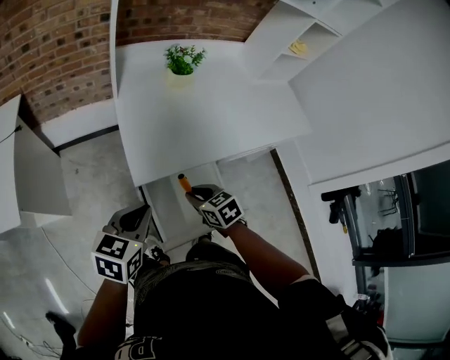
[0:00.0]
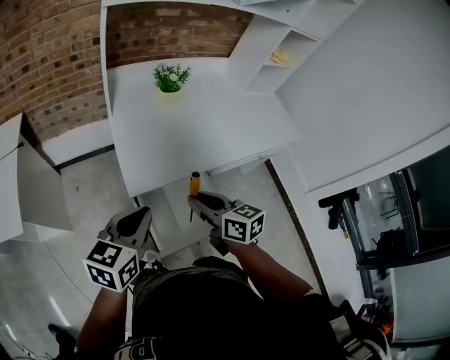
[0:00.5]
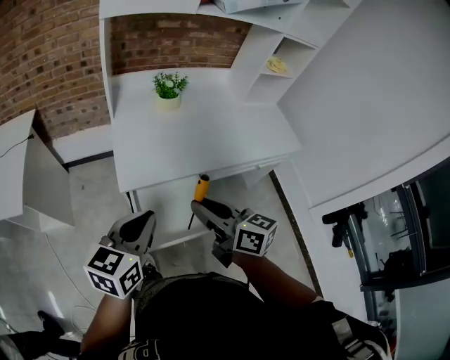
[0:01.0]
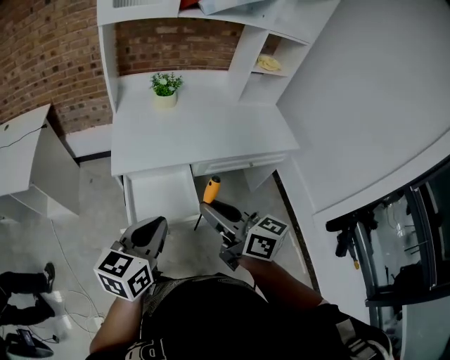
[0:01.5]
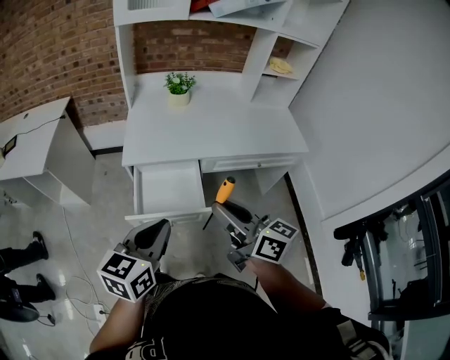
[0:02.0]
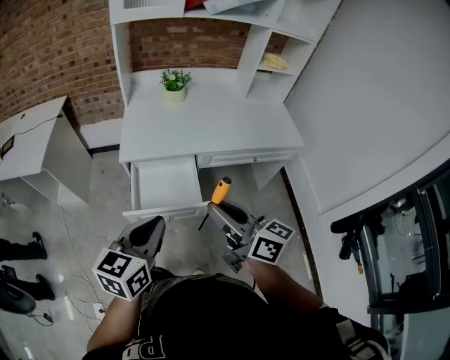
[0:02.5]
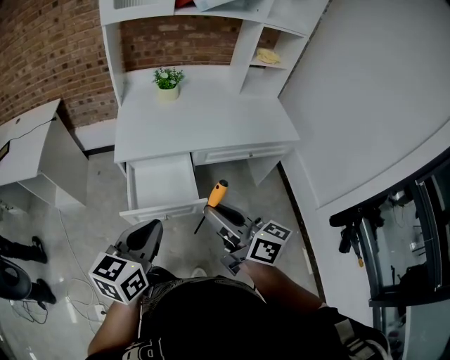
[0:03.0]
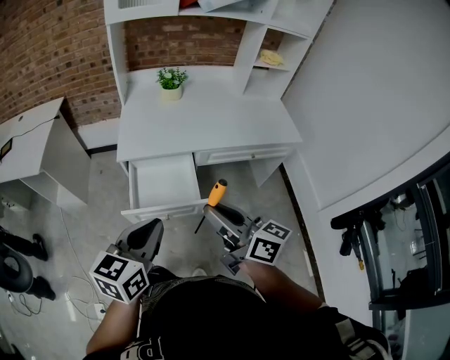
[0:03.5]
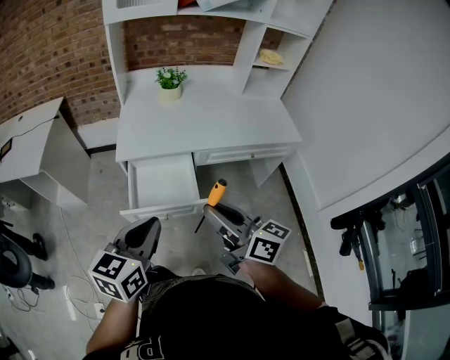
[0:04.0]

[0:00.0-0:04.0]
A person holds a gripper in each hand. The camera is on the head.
0.0 to 2.0 s: The left gripper goes about 35 cm backward, to the right and upward, and turns by some 20 degrees. Meanwhile the right gripper travels upward, backward and to the right by approximately 40 cm, and points its fingers some 50 degrees further upward.
2.0 to 4.0 s: The grippers move only a little.

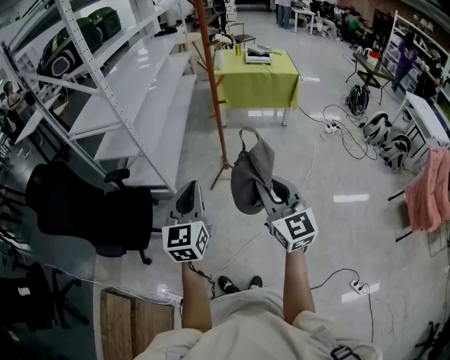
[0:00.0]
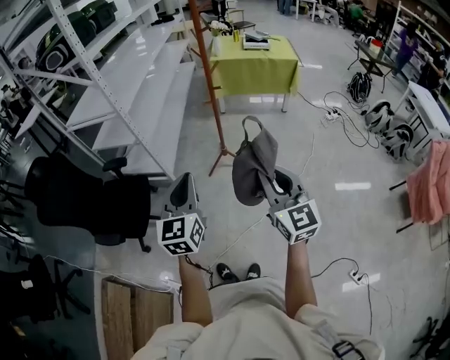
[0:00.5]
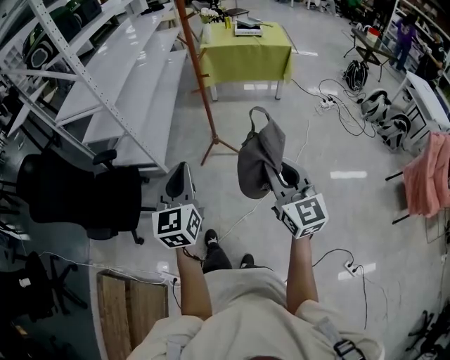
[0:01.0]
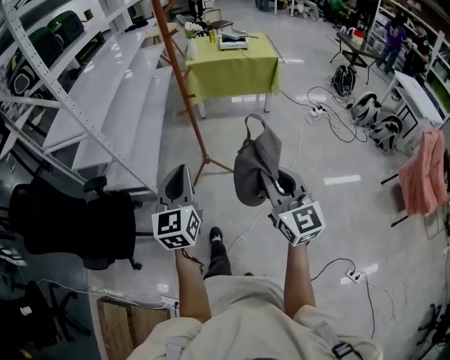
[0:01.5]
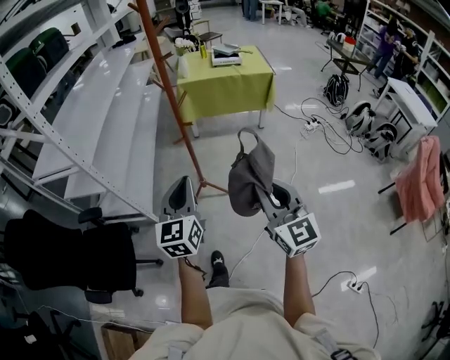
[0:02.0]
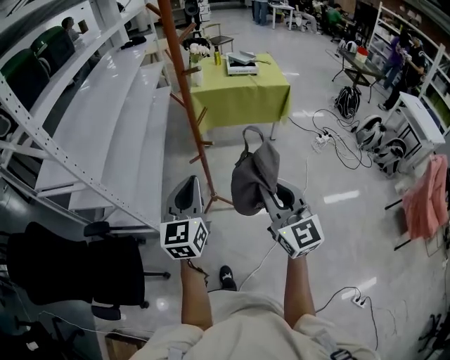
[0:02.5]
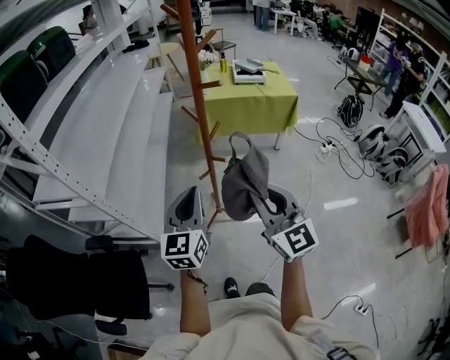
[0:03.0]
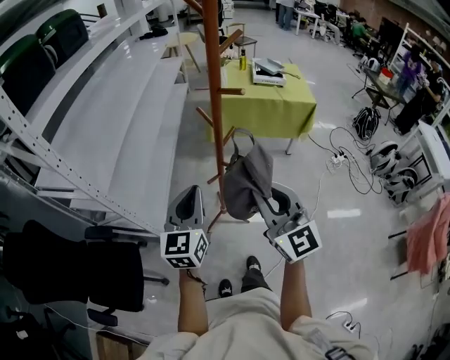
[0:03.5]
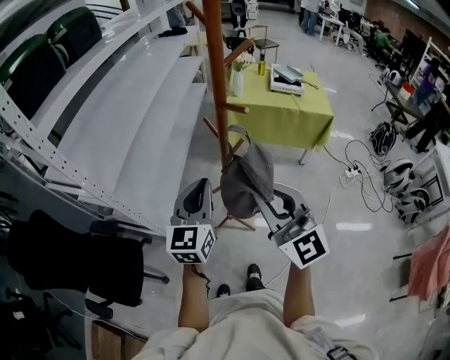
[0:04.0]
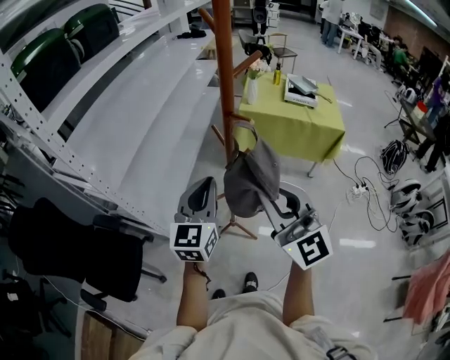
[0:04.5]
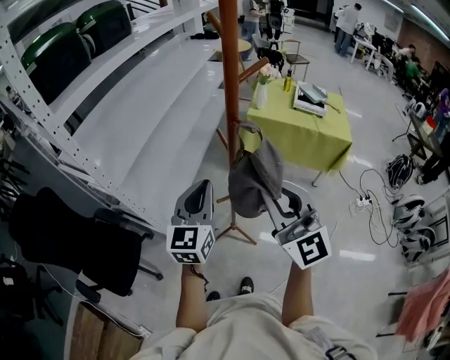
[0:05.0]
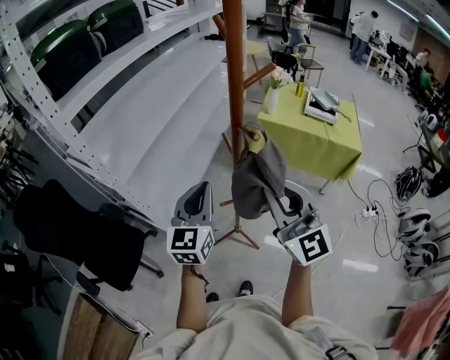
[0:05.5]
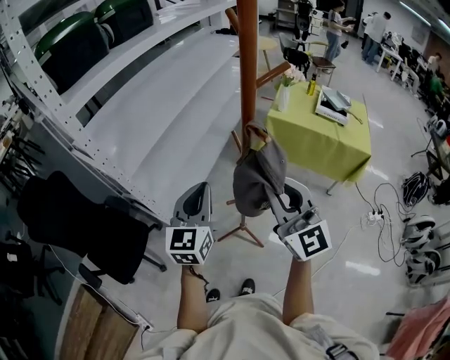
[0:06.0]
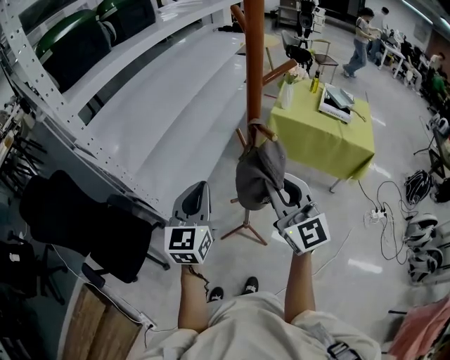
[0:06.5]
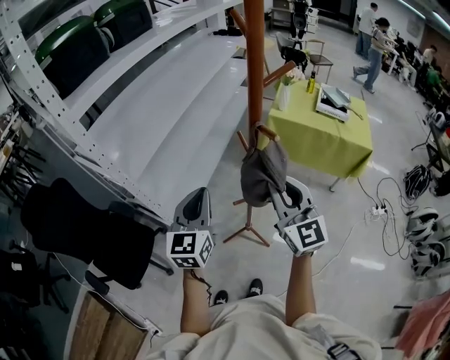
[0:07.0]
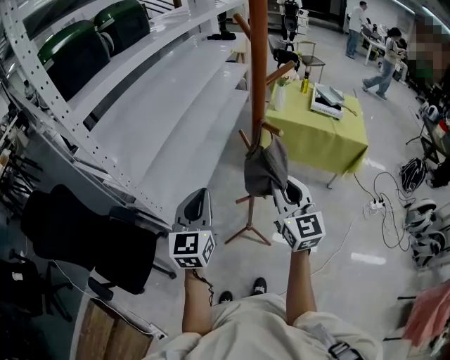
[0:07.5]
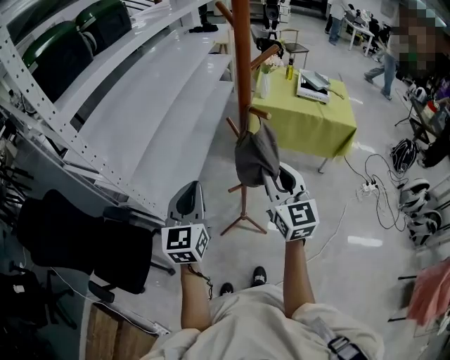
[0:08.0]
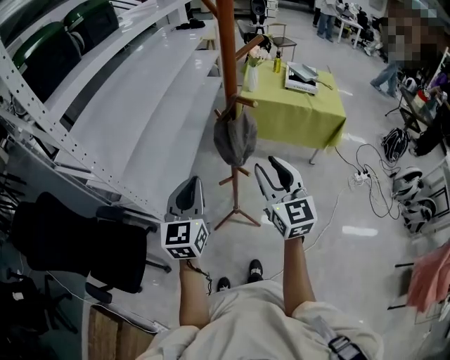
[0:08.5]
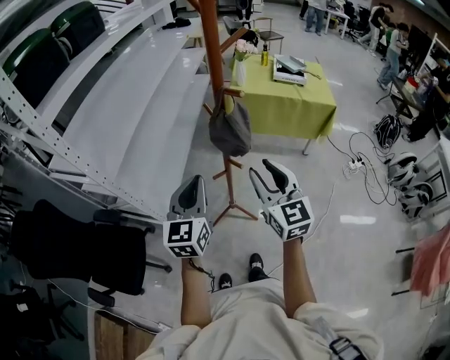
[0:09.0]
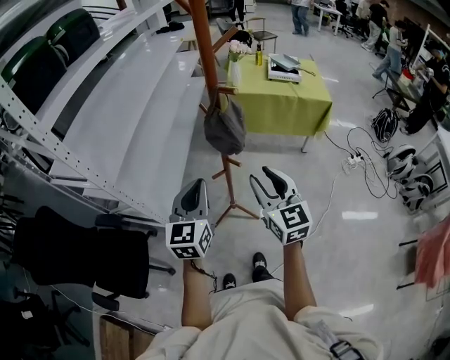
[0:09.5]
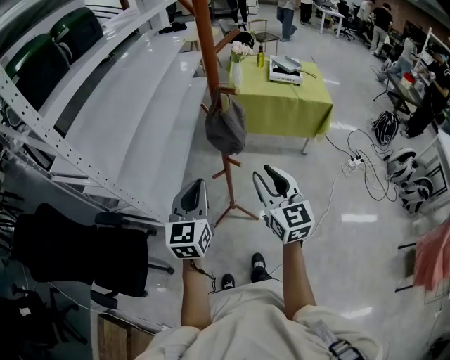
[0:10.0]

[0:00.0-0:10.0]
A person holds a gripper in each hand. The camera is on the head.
0.0 to 2.0 s: Both grippers move forward and to the right, roughly 20 cm.
2.0 to 4.0 s: The left gripper travels forward by approximately 25 cm. The right gripper shifts approximately 30 cm forward and upward, and changes its angle by approximately 30 degrees.
4.0 to 6.0 s: The right gripper is displaced forward by roughly 10 cm.
6.0 to 8.0 s: The right gripper travels downward by roughly 5 cm, and rotates roughly 30 degrees. The left gripper shifts by about 5 cm.
8.0 to 10.0 s: The left gripper heads to the right, covering roughly 5 cm, while the right gripper goes about 10 cm backward.

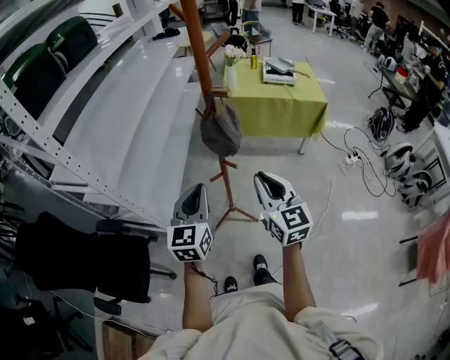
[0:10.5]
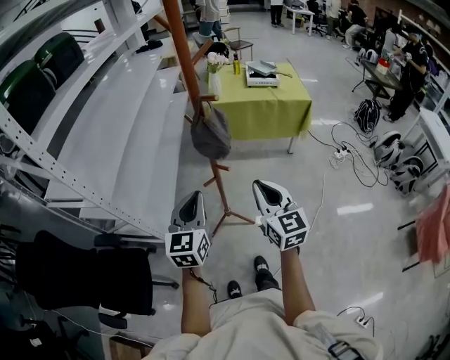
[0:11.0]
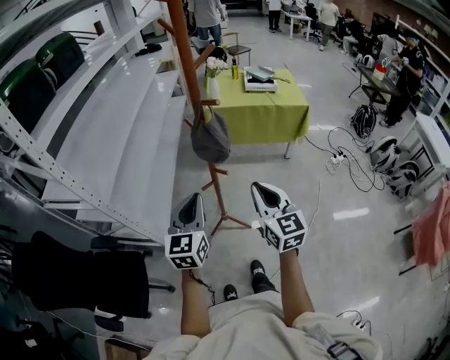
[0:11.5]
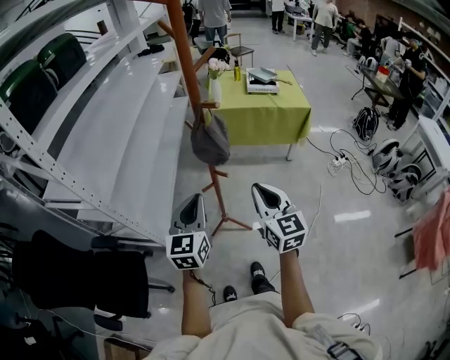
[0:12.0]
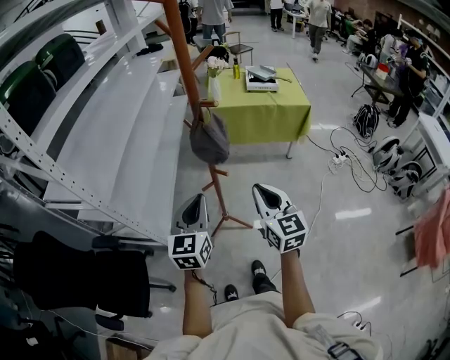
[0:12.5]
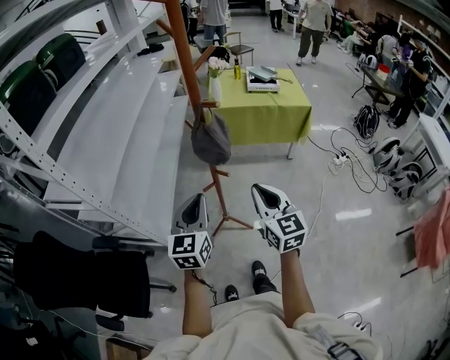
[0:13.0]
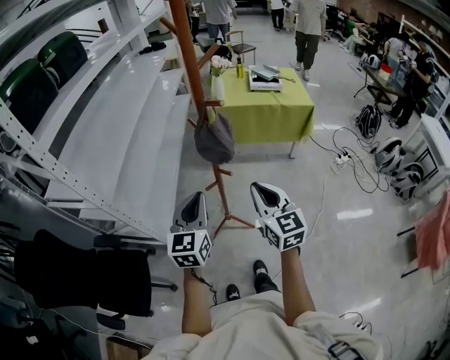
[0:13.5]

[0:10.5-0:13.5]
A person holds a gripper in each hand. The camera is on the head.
10.5 to 13.5 s: The grippers make only small movements.

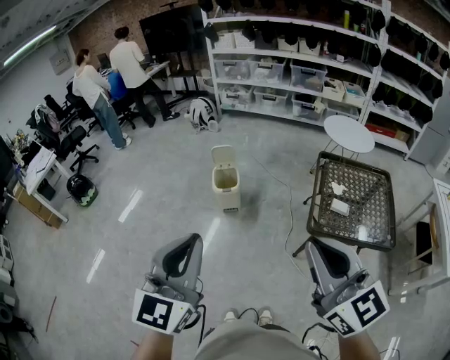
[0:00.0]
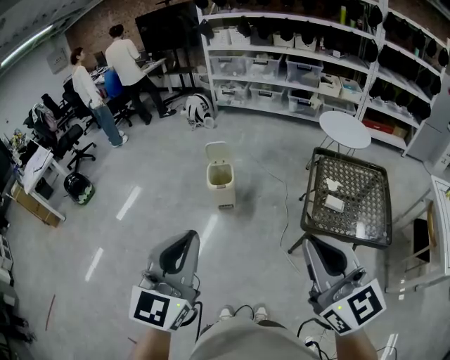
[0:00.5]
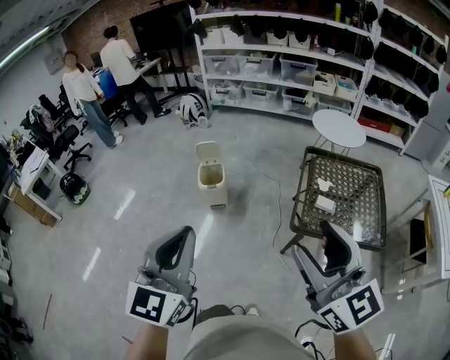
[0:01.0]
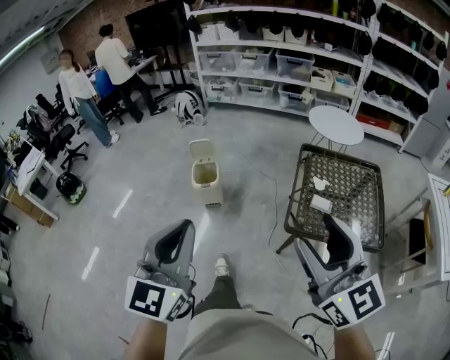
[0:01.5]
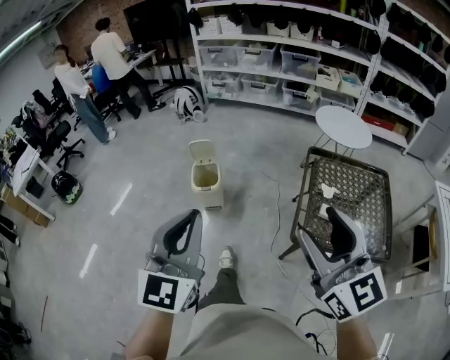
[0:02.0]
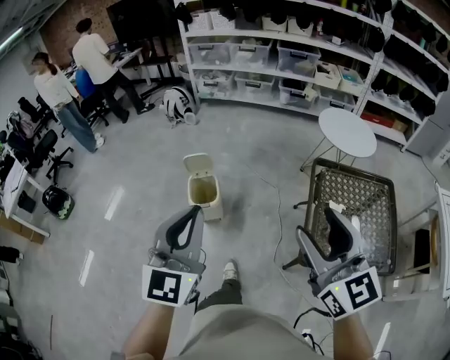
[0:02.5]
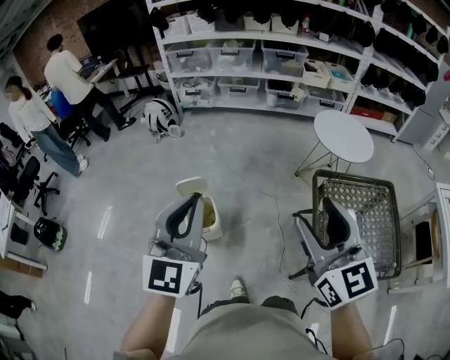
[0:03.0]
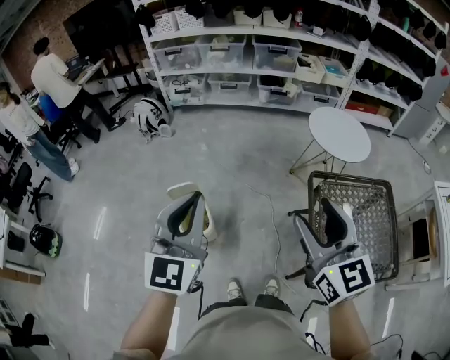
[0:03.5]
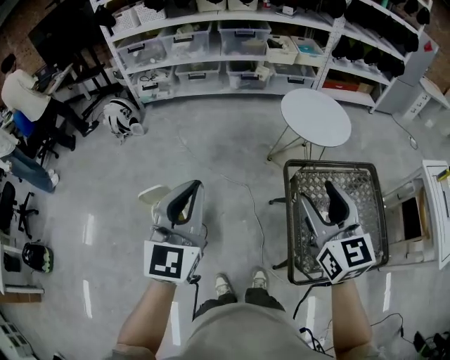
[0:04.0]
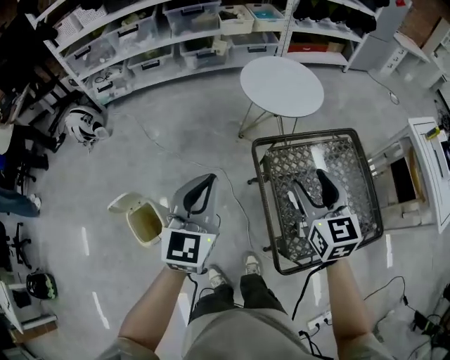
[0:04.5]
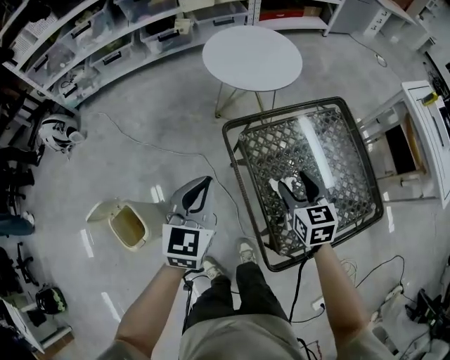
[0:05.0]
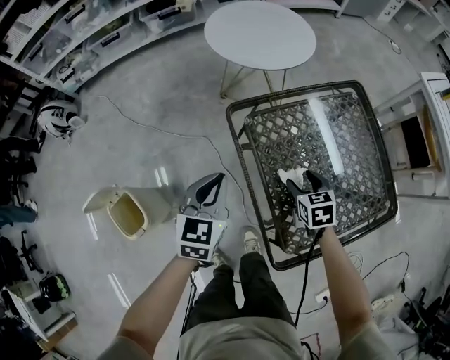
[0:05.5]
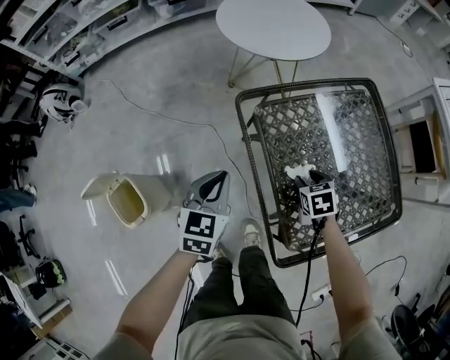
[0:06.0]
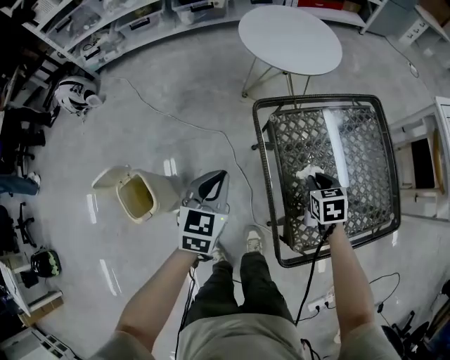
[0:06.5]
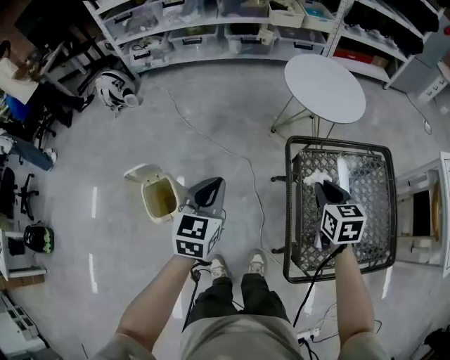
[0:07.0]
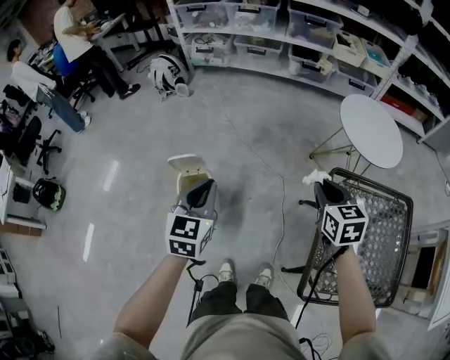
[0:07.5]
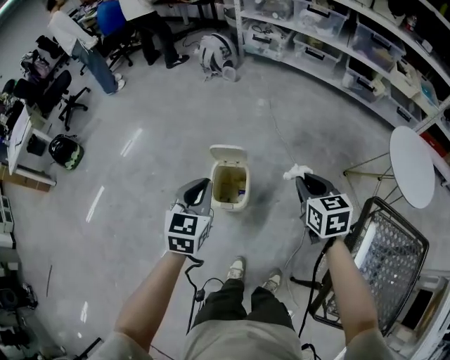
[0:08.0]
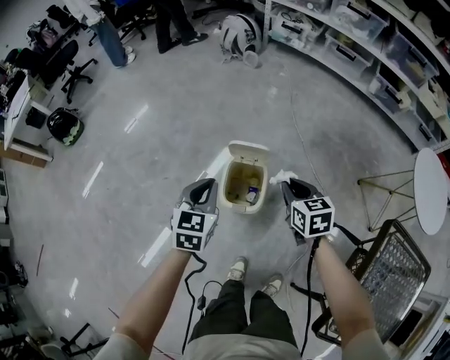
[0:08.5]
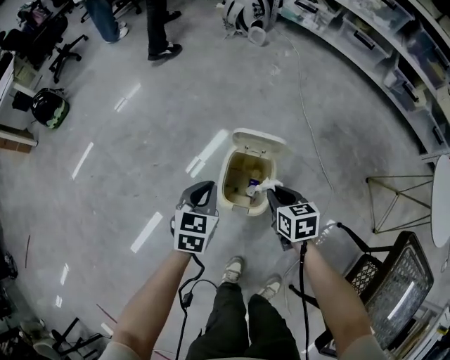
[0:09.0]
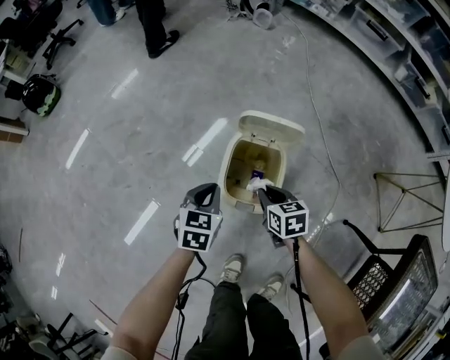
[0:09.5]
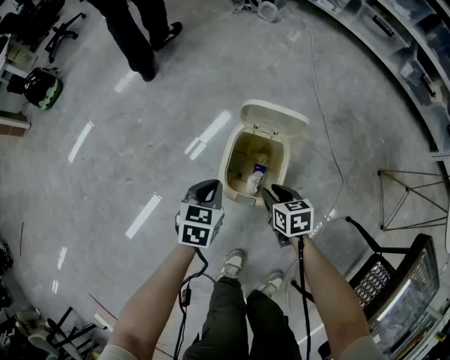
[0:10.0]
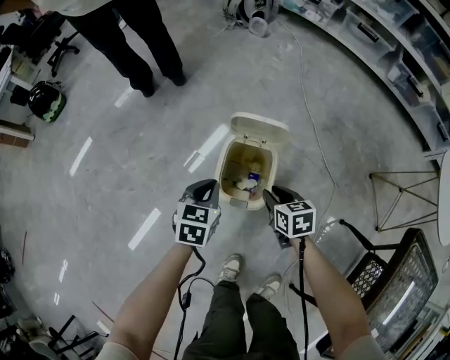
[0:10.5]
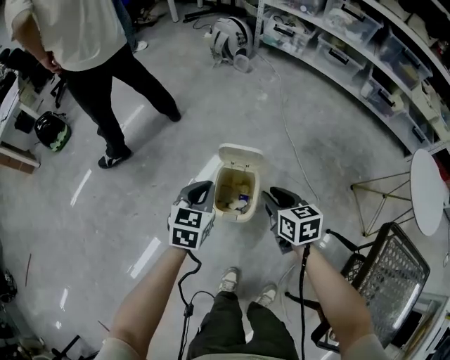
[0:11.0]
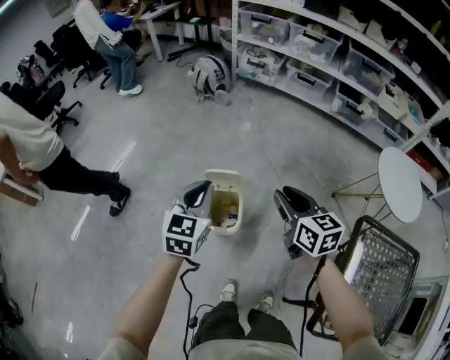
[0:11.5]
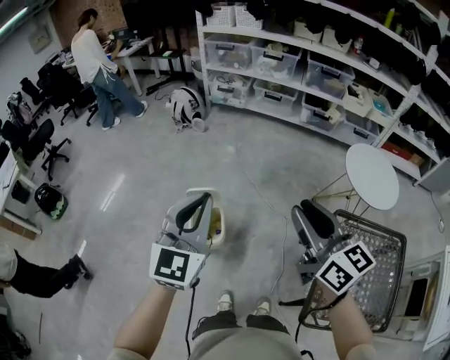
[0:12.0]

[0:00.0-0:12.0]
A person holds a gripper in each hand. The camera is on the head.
0.0 to 2.0 s: Both grippers move forward and to the right, about 20 cm. The right gripper opens its fingers.
2.0 to 4.0 s: The two grippers travel together, forward, some 40 cm. The right gripper turns by some 30 degrees.
4.0 to 6.0 s: Both grippers travel together downward and to the right, approximately 50 cm. The left gripper tilts its fingers roughly 30 degrees downward. Meanwhile the right gripper angles its fingers downward, by some 60 degrees.
6.0 to 8.0 s: Both grippers are carried roughly 50 cm. The right gripper tilts its fingers roughly 30 degrees upward, and closes its fingers. Meanwhile the left gripper turns by roughly 50 degrees.
8.0 to 10.0 s: The left gripper goes roughly 40 cm downward, and turns by some 30 degrees. Meanwhile the right gripper goes approximately 50 cm downward and to the left, and rotates approximately 30 degrees.
10.0 to 12.0 s: Both grippers move upward, roughly 70 cm. The right gripper points its fingers some 50 degrees further upward; the left gripper angles its fingers upward, by some 40 degrees.
